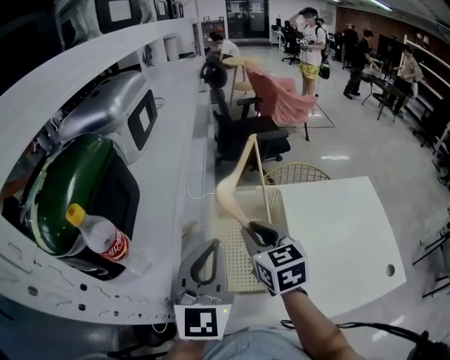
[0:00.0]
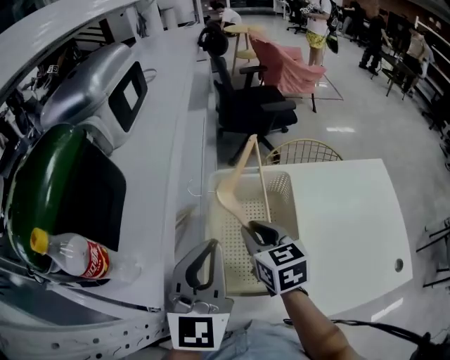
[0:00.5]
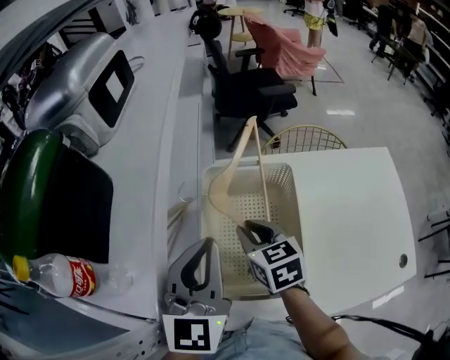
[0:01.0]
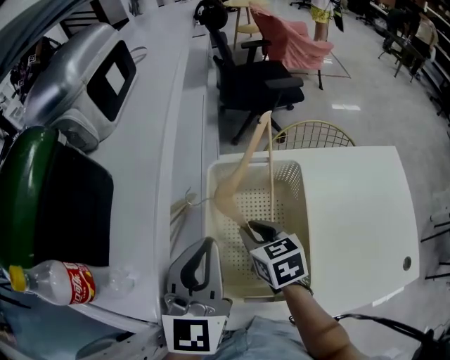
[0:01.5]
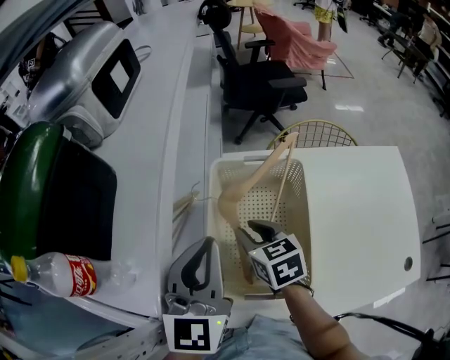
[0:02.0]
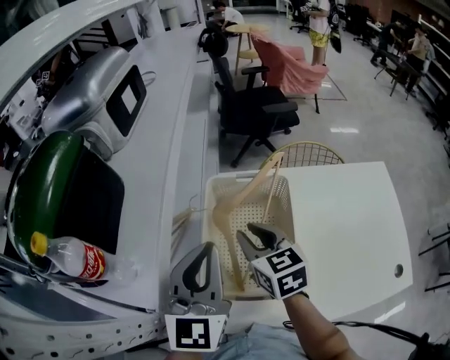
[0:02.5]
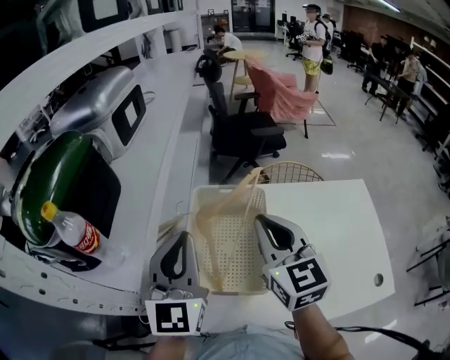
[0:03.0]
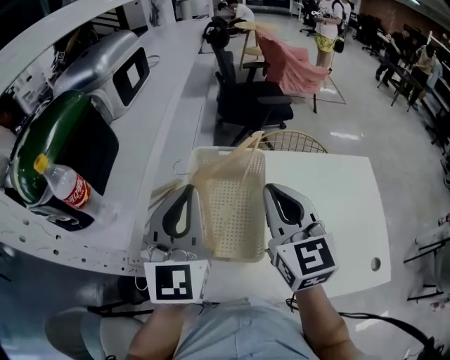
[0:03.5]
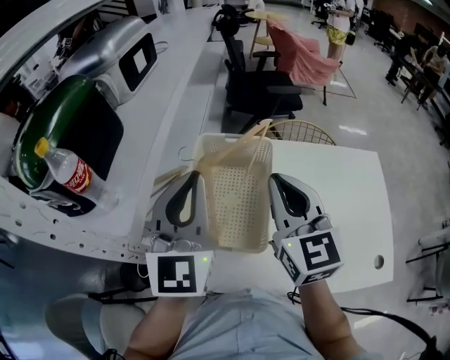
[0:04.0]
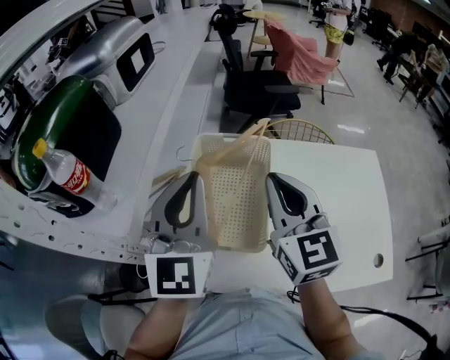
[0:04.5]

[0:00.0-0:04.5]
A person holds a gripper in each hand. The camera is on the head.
0:00.0 to 0:02.0: The left gripper travels downward by about 5 cm, while the right gripper is displaced downward by some 15 cm, and changes its angle by roughly 20 degrees.
0:02.0 to 0:04.5: The right gripper goes approximately 25 cm upward, to the right and backward, angles its fingers upward, by roughly 30 degrees, and closes, while the left gripper travels upward, backward and to the right by approximately 10 cm.

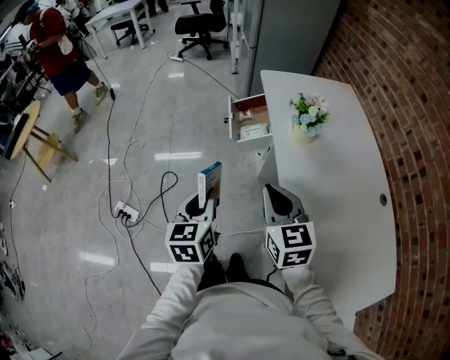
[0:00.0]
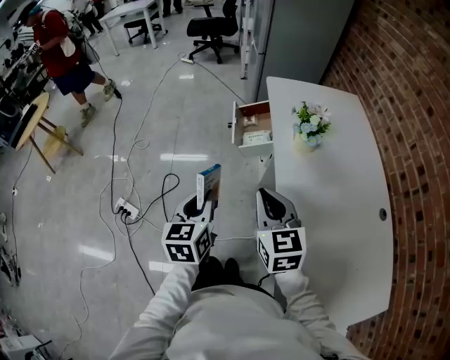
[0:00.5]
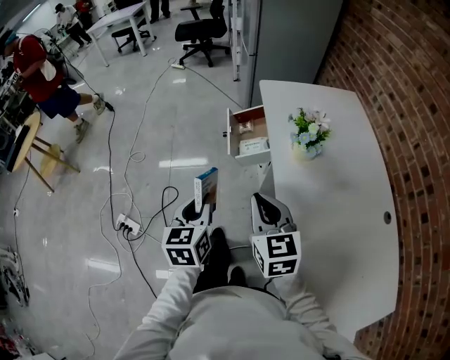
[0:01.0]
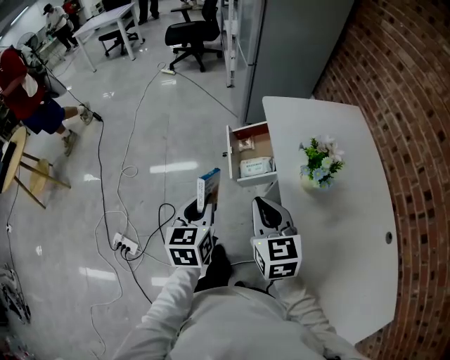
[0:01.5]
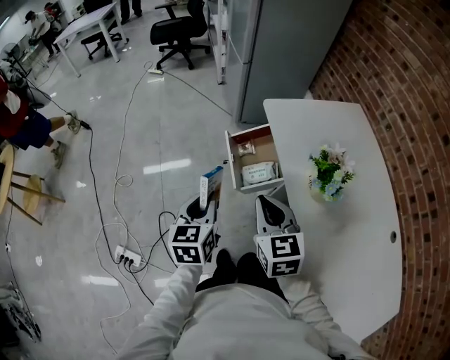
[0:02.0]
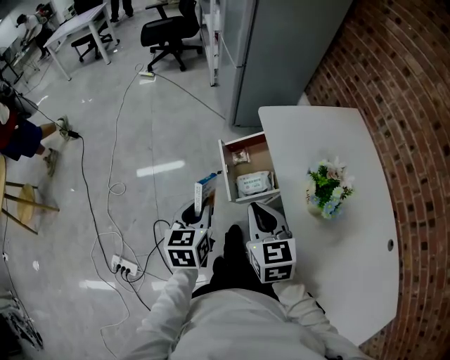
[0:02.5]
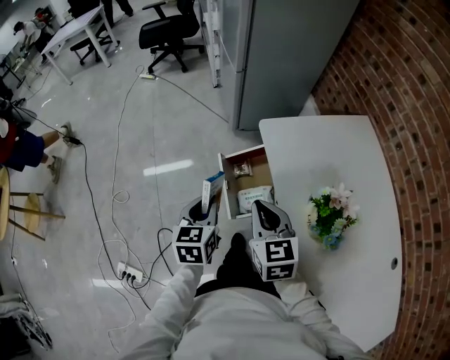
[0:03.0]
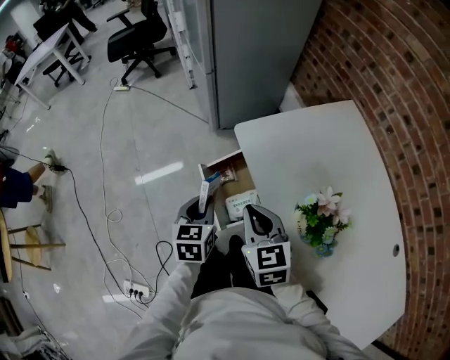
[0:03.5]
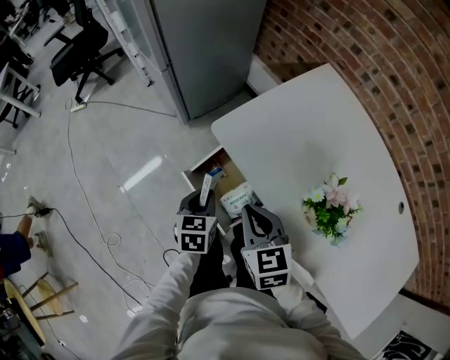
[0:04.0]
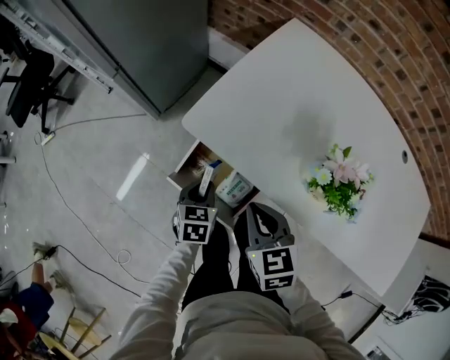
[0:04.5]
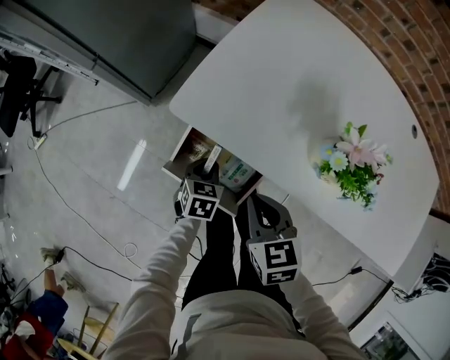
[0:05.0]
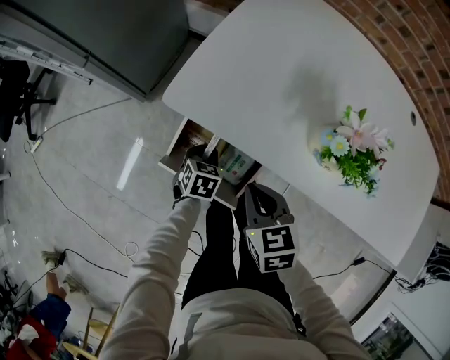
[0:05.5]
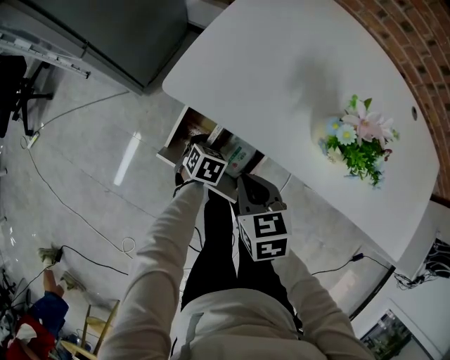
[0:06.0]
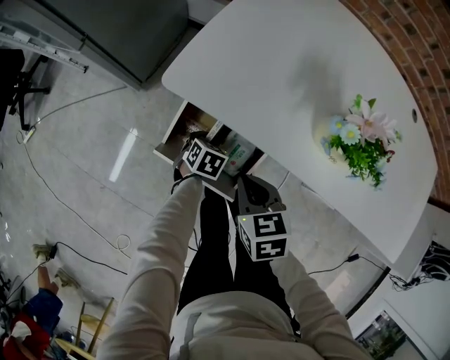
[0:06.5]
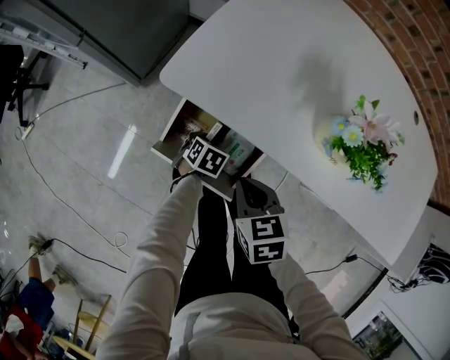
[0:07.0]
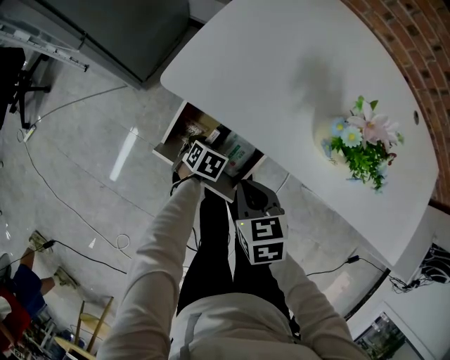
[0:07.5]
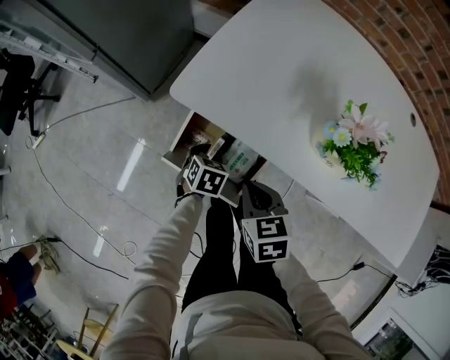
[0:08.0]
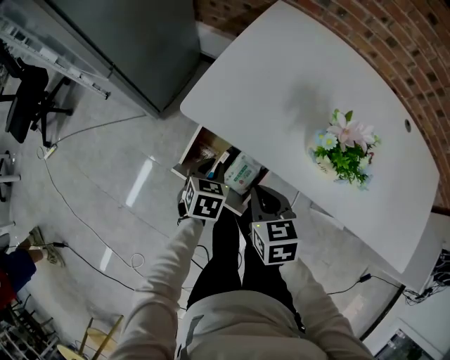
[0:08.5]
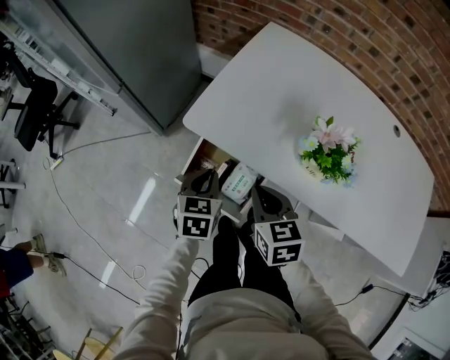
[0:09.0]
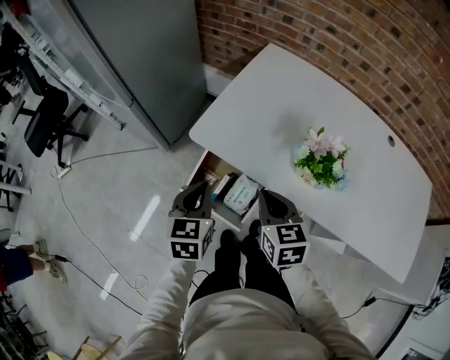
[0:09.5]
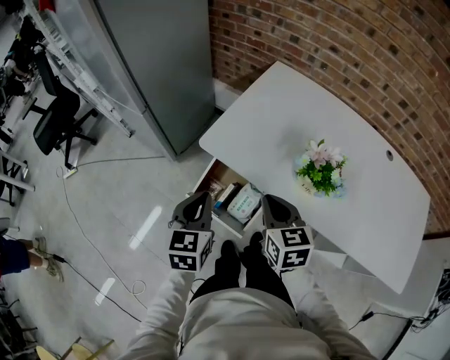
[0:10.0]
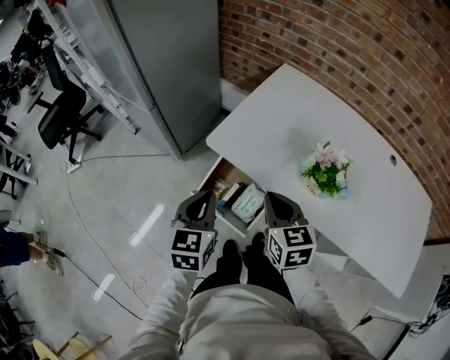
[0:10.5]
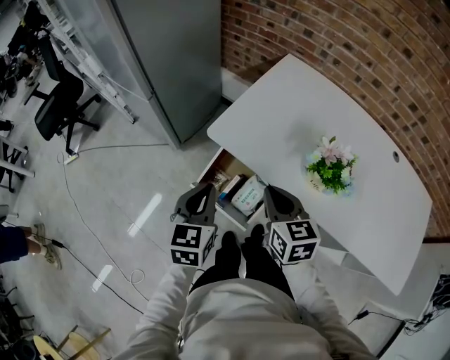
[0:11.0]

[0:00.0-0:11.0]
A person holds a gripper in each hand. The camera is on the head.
0:00.0 to 0:02.0: Both grippers move forward, about 25 cm.
0:02.0 to 0:03.5: The right gripper goes roughly 15 cm forward; the left gripper is displaced forward and to the right by some 20 cm.
0:03.5 to 0:05.5: The left gripper travels downward by roughly 25 cm, and rotates approximately 60 degrees. Meanwhile the right gripper goes approximately 15 cm downward, and swivels roughly 40 degrees.
0:05.5 to 0:07.5: The left gripper is displaced downward by about 10 cm, while the right gripper shifts by roughly 5 cm.
0:07.5 to 0:09.0: The right gripper is displaced upward by approximately 10 cm, while the left gripper moves upward, approximately 25 cm, and turns by roughly 30 degrees.
0:09.0 to 0:11.0: The right gripper moves upward, about 5 cm. The left gripper goes about 15 cm upward, to the left and backward.

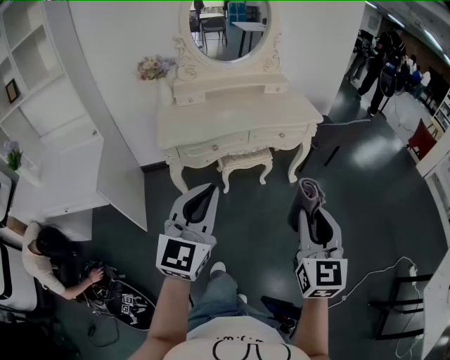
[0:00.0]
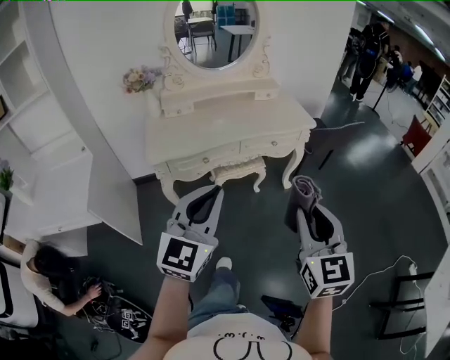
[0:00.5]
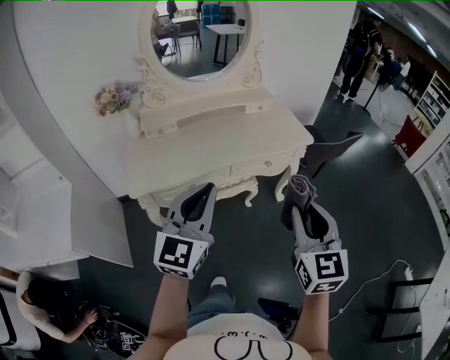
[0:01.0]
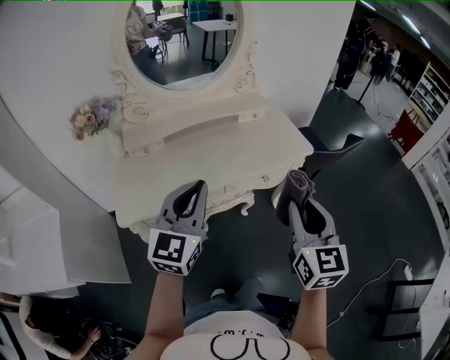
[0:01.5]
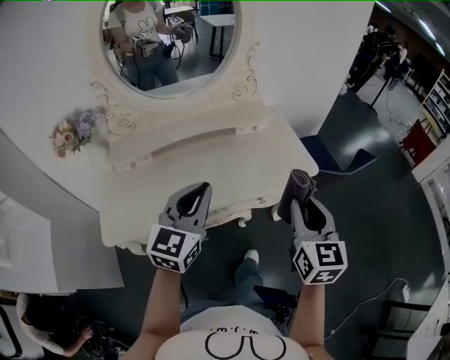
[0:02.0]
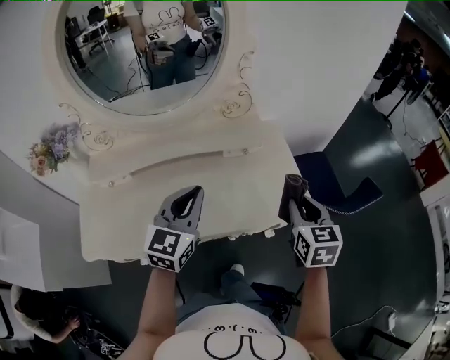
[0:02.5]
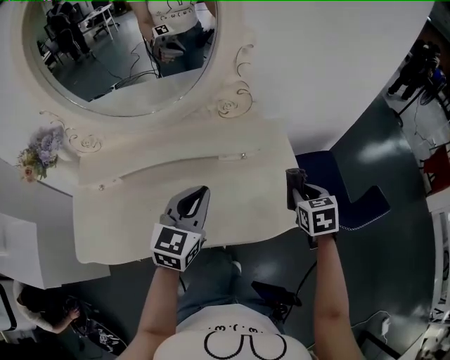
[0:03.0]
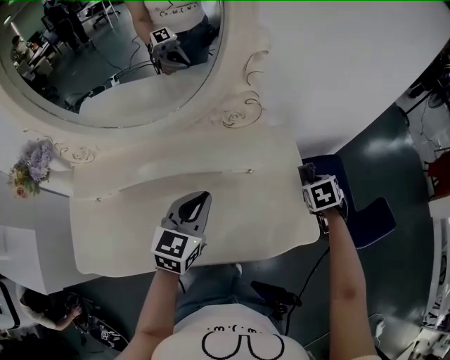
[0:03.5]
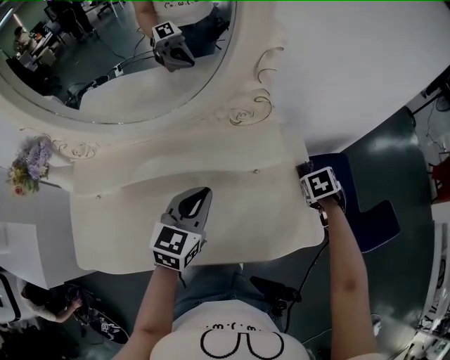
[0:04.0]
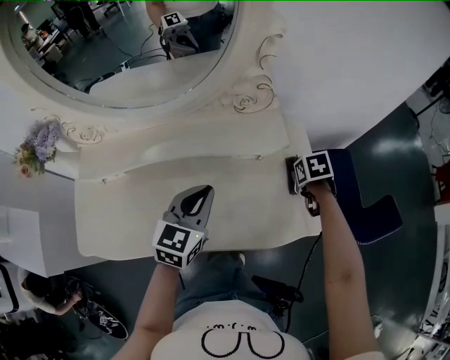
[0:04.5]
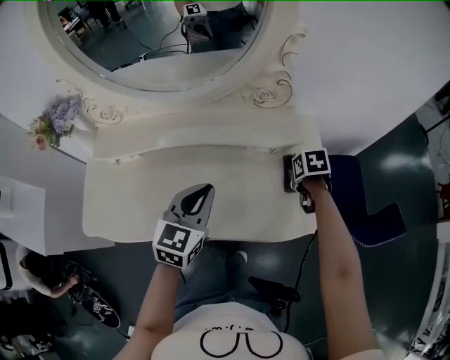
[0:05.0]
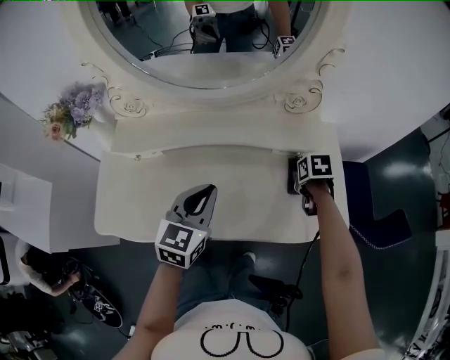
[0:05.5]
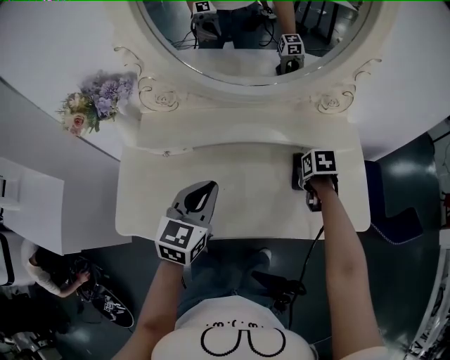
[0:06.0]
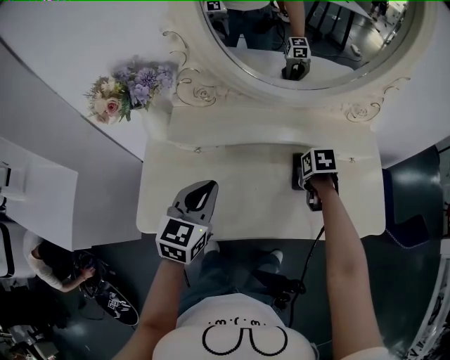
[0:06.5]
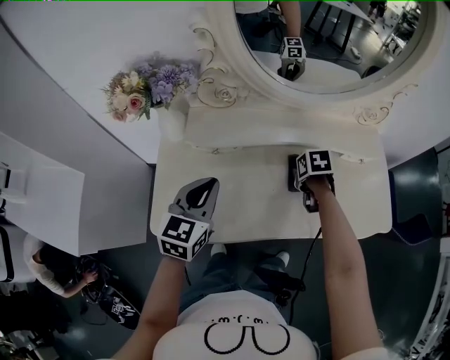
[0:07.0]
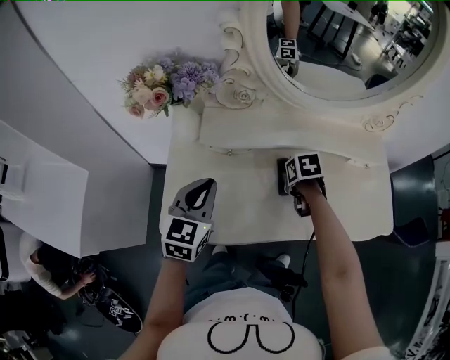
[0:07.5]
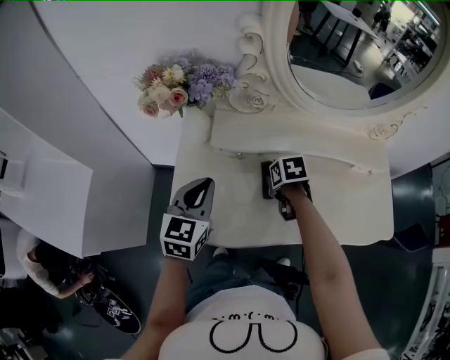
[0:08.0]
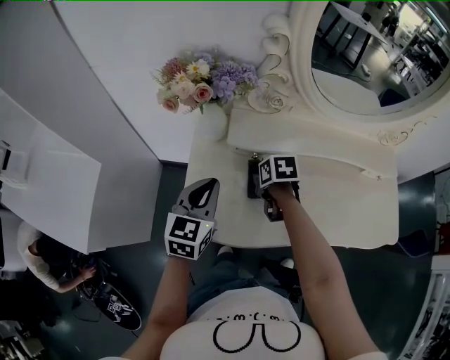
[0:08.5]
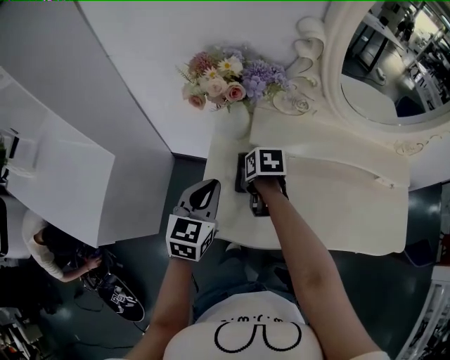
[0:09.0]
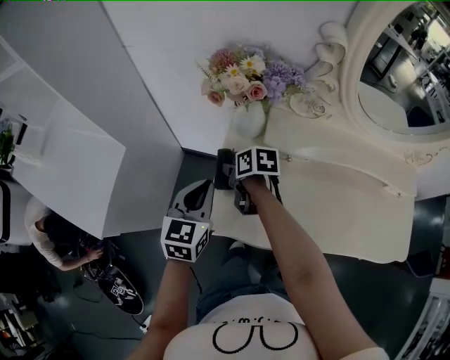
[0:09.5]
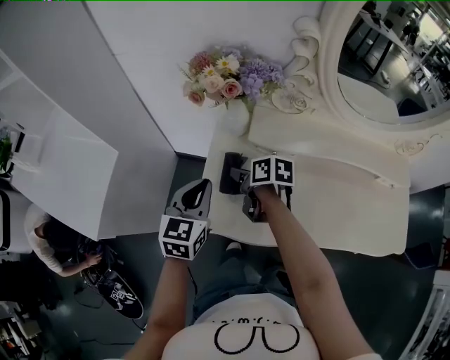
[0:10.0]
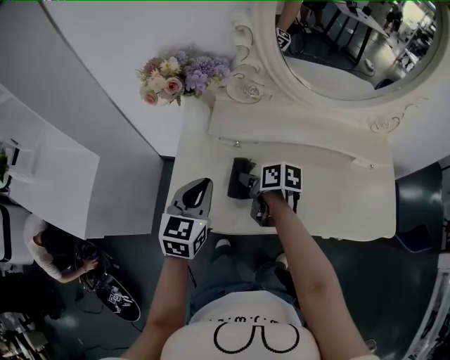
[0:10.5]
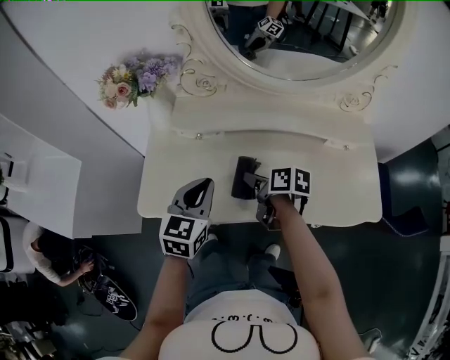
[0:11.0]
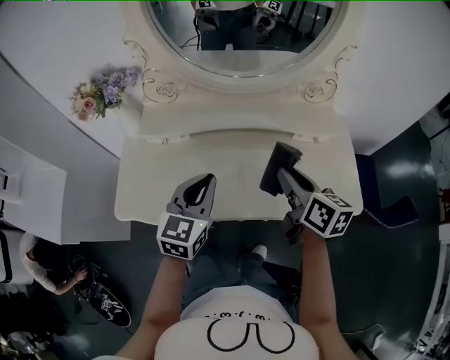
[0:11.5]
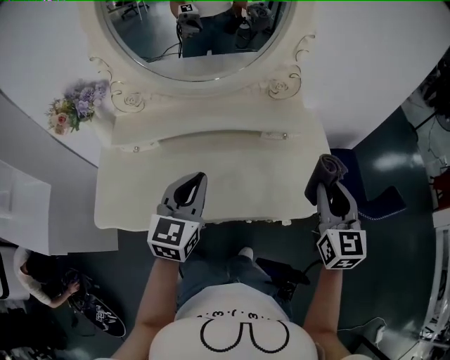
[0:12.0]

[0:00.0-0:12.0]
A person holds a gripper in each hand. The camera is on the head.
0:00.0 to 0:02.0: The two grippers travel together, forward, roughly 50 cm.
0:02.0 to 0:04.0: The left gripper shifts approximately 30 cm forward, and rotates about 20 degrees. Meanwhile the right gripper is displaced forward and downward by about 50 cm, and points its fingers about 60 degrees further downward.
0:04.0 to 0:06.0: The right gripper changes place by about 30 cm. Meanwhile the left gripper moves roughly 25 cm.
0:06.0 to 0:08.0: Both grippers travel together to the left, some 30 cm.
0:08.0 to 0:10.0: The right gripper shifts roughly 25 cm to the left, and changes its angle by approximately 40 degrees, while the left gripper moves to the left, about 10 cm.
0:10.0 to 0:12.0: Both grippers are carried roughly 60 cm. The right gripper points its fingers about 30 degrees further upward, while the left gripper changes its angle by some 20 degrees.
